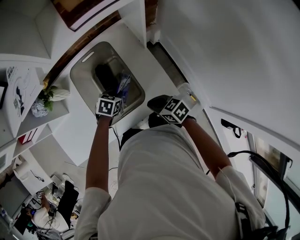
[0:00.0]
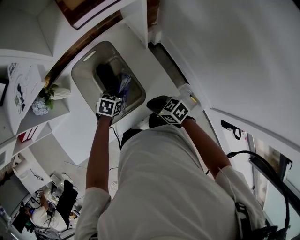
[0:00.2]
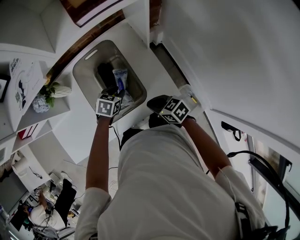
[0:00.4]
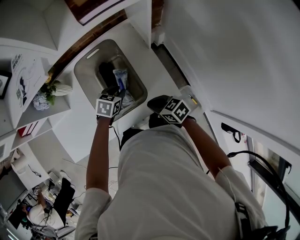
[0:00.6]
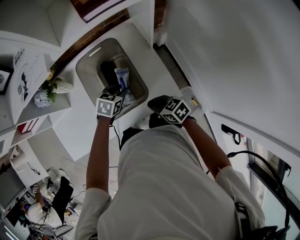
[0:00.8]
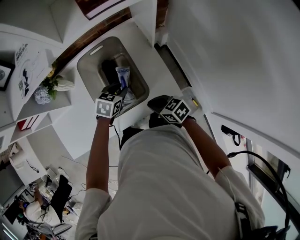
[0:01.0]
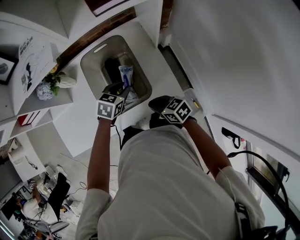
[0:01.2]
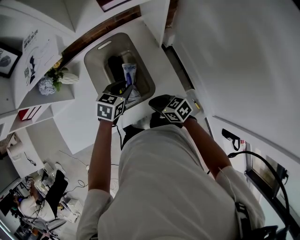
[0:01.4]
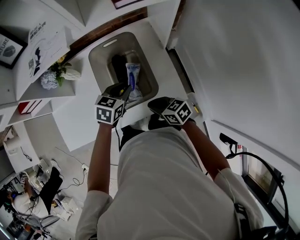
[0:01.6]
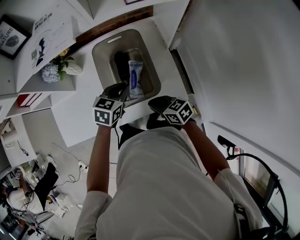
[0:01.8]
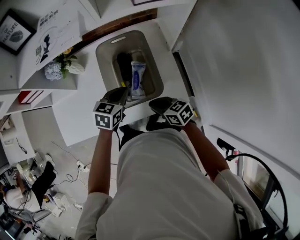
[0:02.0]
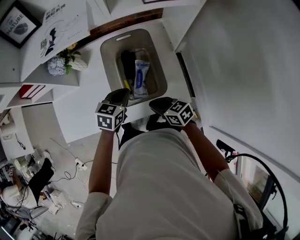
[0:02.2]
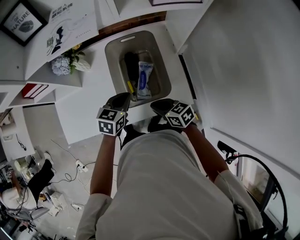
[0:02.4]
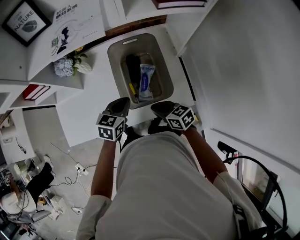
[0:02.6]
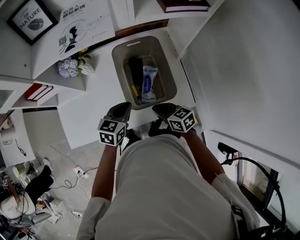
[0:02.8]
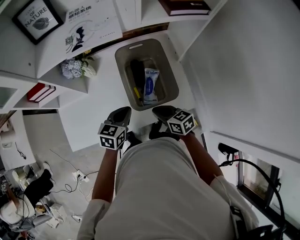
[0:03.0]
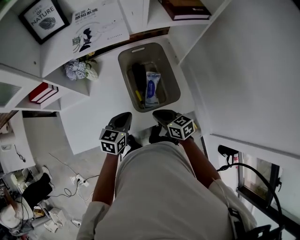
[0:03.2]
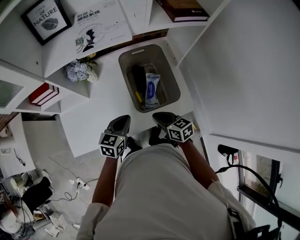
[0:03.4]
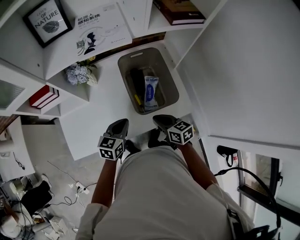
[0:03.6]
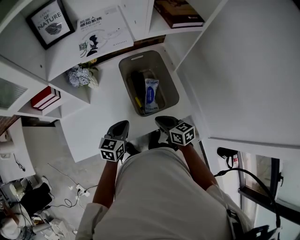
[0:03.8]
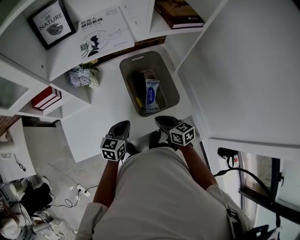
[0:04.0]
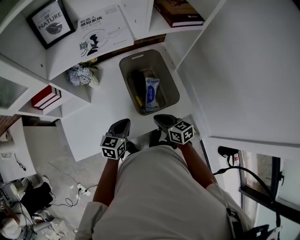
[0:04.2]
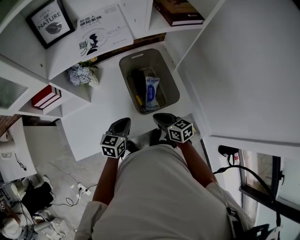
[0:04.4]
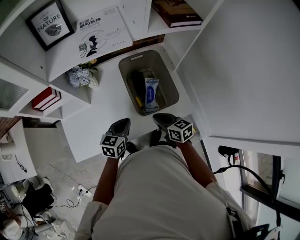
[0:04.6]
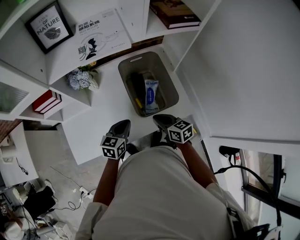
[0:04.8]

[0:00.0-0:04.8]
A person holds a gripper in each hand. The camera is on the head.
0:00.0 to 0:01.6: The left gripper goes about 15 cm upward, and rotates approximately 20 degrees. The right gripper travels to the left by about 5 cm.
0:01.6 to 0:03.2: The left gripper goes about 20 cm to the left and backward, while the right gripper heads to the left, covering some 10 cm.
0:03.2 to 0:04.8: There are only small adjustments of the grippers.

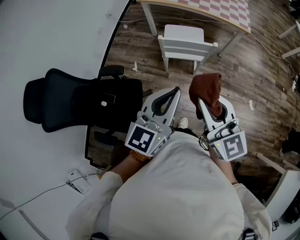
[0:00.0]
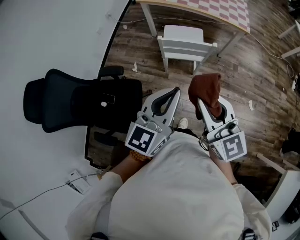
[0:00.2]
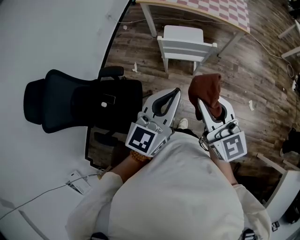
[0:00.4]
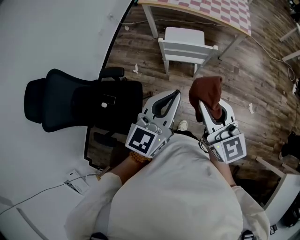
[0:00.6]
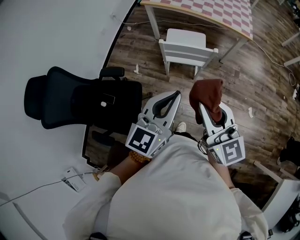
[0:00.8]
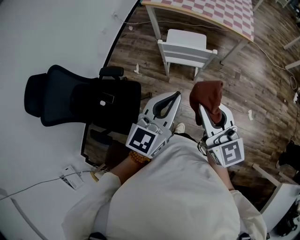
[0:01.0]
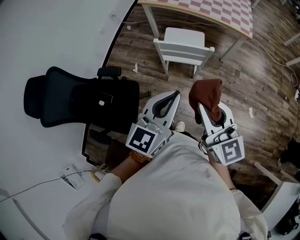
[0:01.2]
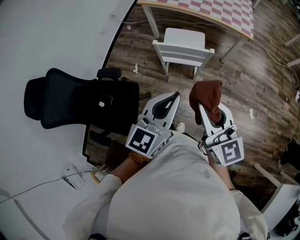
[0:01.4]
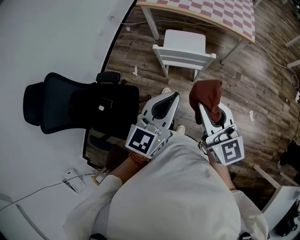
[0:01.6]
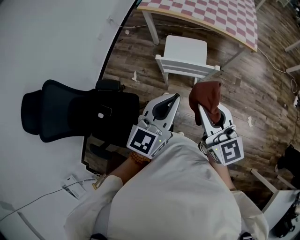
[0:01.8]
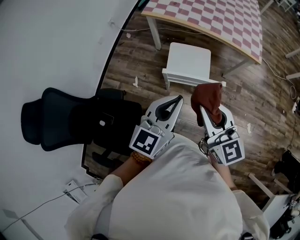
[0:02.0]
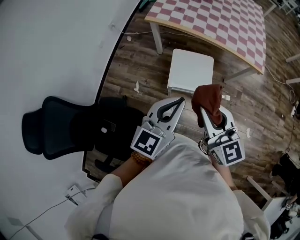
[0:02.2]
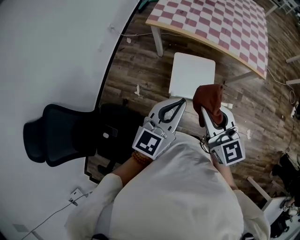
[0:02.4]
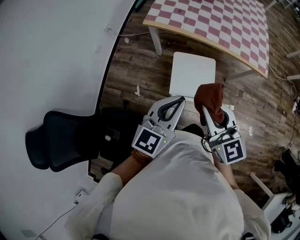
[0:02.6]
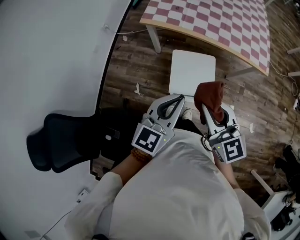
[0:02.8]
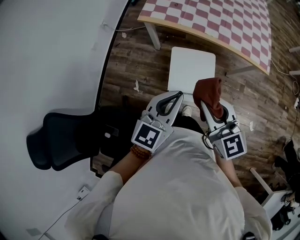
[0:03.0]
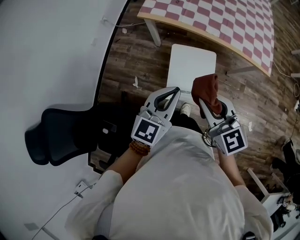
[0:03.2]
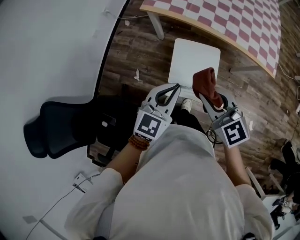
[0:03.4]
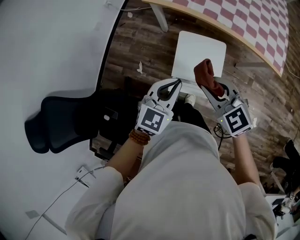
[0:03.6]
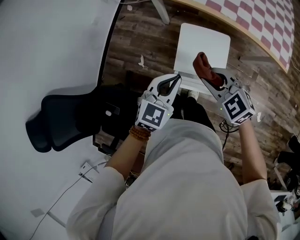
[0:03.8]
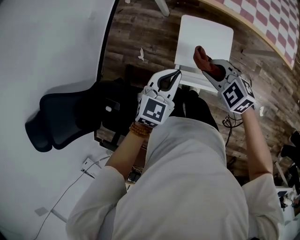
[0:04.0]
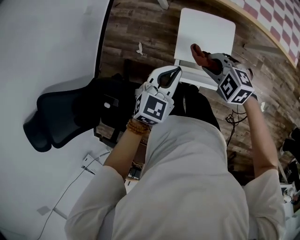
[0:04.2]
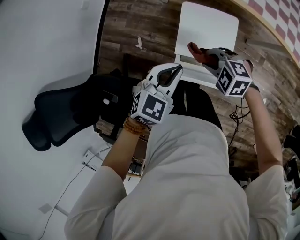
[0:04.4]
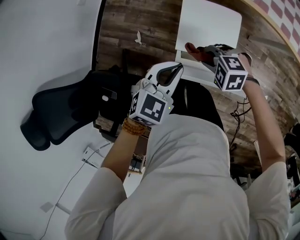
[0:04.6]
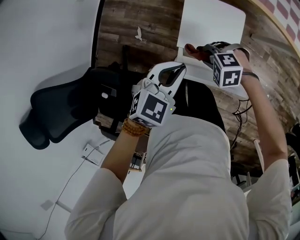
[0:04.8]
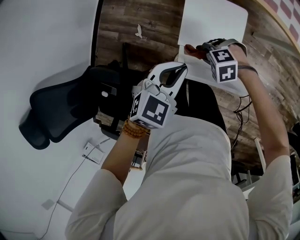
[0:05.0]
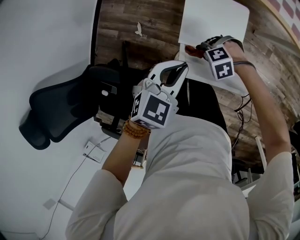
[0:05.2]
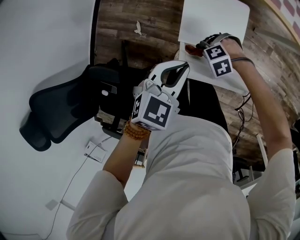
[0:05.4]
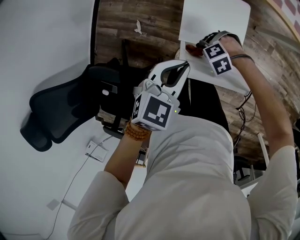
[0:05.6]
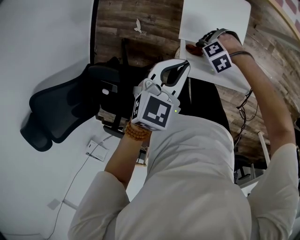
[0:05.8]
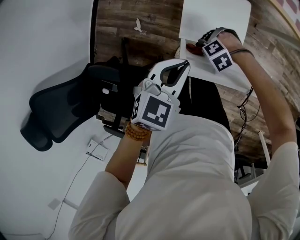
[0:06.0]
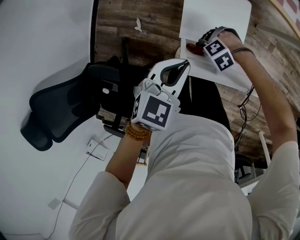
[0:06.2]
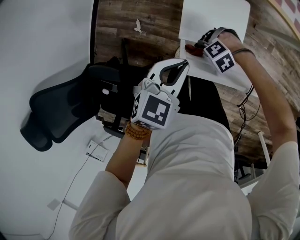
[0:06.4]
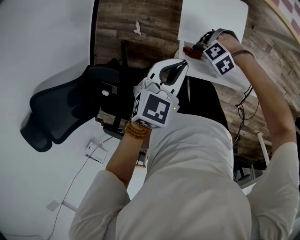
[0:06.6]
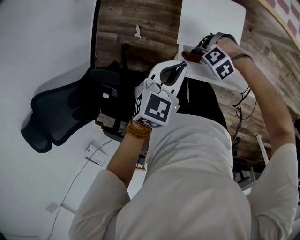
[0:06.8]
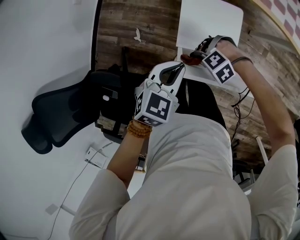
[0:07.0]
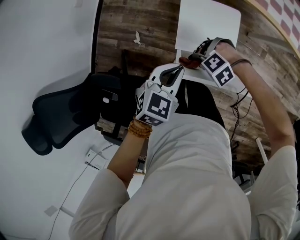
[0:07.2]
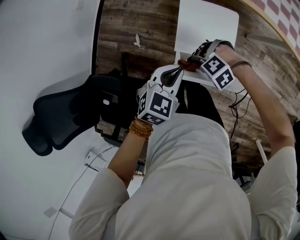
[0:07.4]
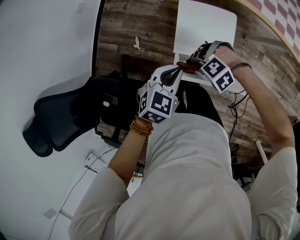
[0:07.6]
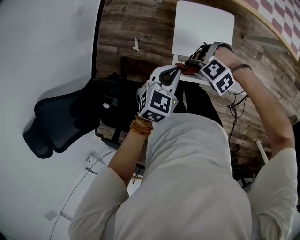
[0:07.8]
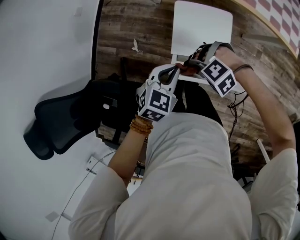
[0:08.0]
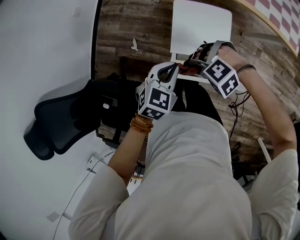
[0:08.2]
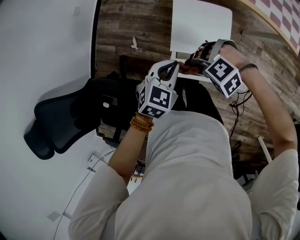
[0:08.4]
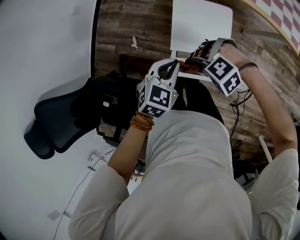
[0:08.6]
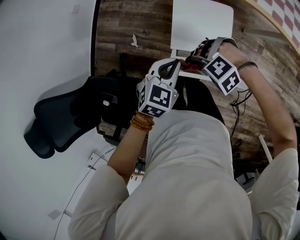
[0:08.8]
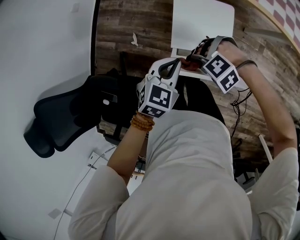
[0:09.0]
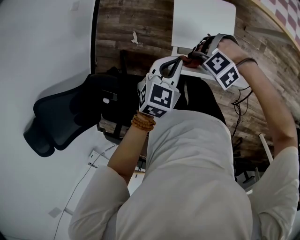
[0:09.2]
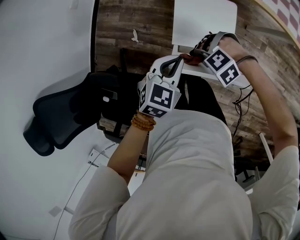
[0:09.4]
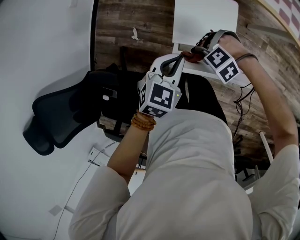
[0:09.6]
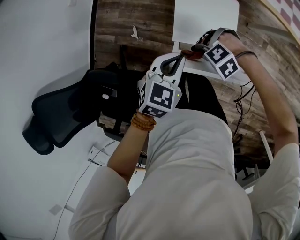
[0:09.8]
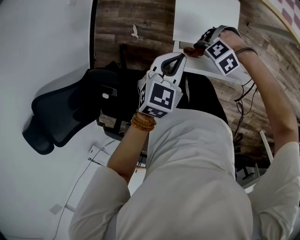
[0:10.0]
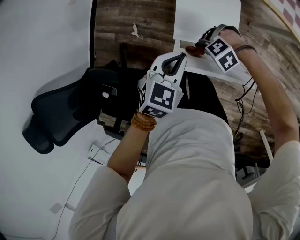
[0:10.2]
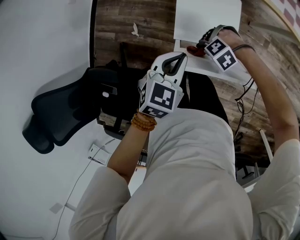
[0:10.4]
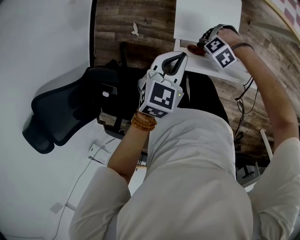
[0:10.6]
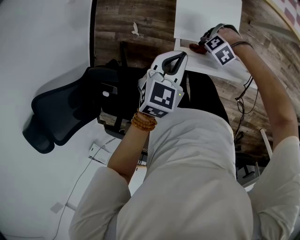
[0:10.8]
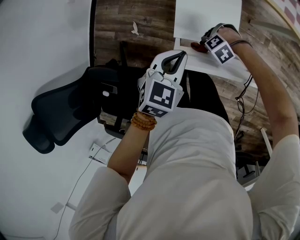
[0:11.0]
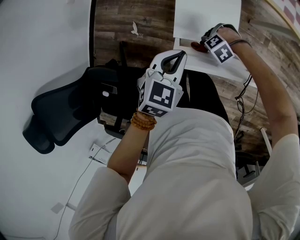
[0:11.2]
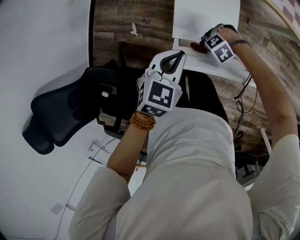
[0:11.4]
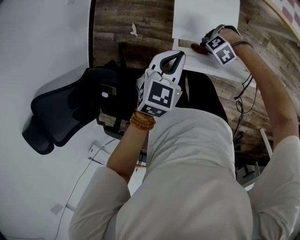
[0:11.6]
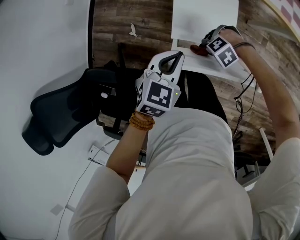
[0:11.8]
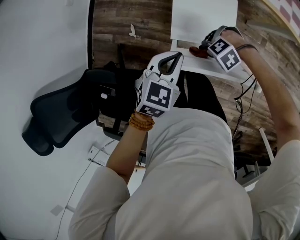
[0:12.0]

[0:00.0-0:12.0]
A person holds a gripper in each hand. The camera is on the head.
0:00.0 to 0:01.6: The right gripper is displaced to the right and forward by some 10 cm, while the left gripper moves forward and to the right, some 10 cm.
0:01.6 to 0:03.0: Both grippers travel together forward, roughly 35 cm.
0:03.0 to 0:04.4: The right gripper goes roughly 30 cm downward, and points its fingers roughly 40 degrees further downward; the left gripper moves downward, roughly 20 cm, and rotates approximately 30 degrees.
0:04.4 to 0:06.0: The right gripper moves downward, approximately 20 cm, and changes its angle by about 40 degrees.
0:06.0 to 0:07.6: The right gripper heads upward, covering approximately 10 cm.
0:07.6 to 0:09.0: The grippers move only a little.
0:09.0 to 0:10.4: The right gripper shifts some 10 cm downward.
0:10.4 to 0:12.0: The grippers make only small movements.

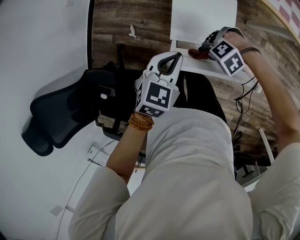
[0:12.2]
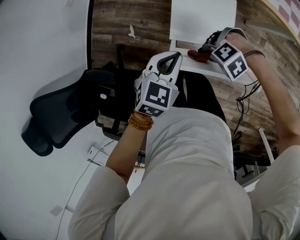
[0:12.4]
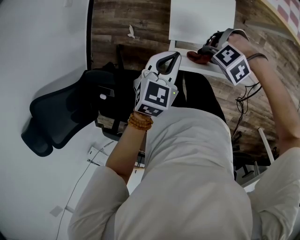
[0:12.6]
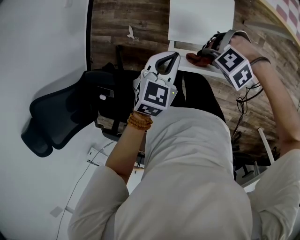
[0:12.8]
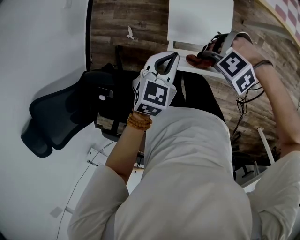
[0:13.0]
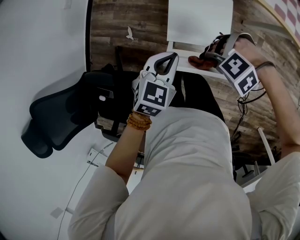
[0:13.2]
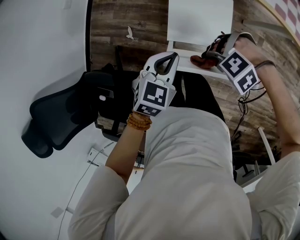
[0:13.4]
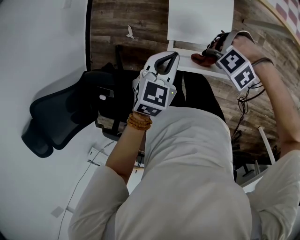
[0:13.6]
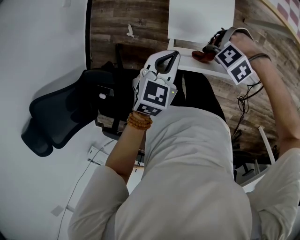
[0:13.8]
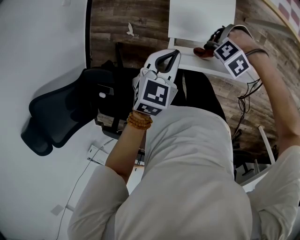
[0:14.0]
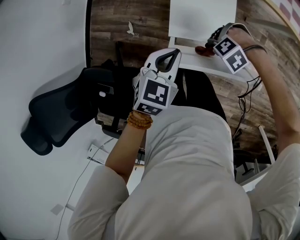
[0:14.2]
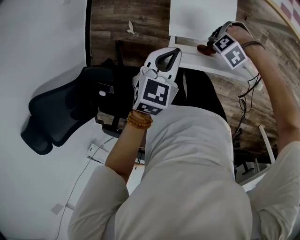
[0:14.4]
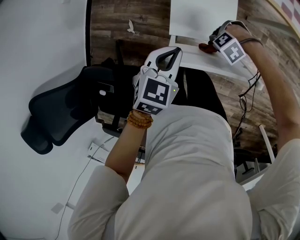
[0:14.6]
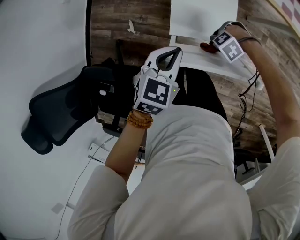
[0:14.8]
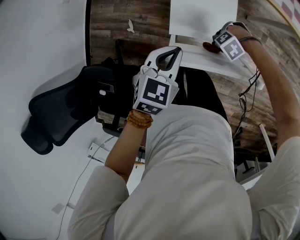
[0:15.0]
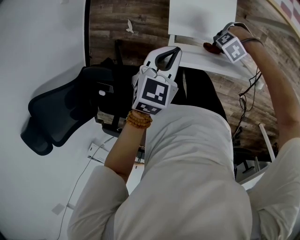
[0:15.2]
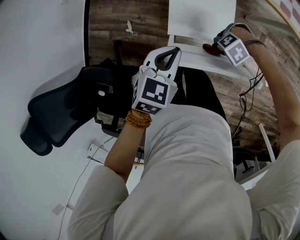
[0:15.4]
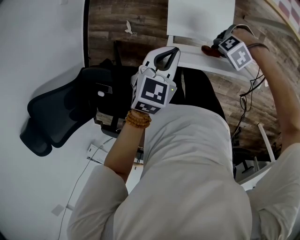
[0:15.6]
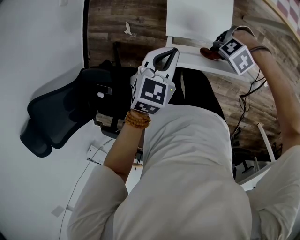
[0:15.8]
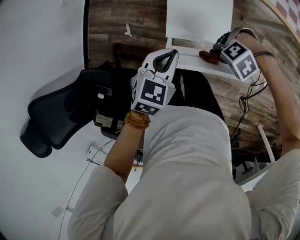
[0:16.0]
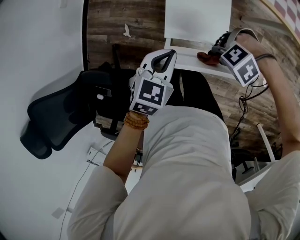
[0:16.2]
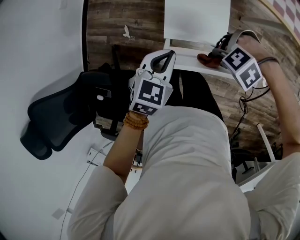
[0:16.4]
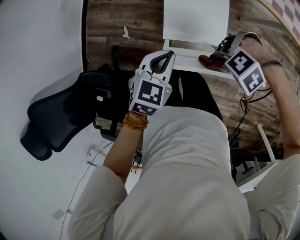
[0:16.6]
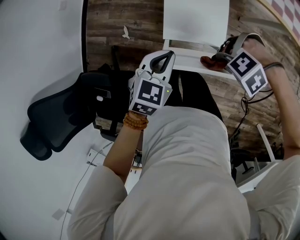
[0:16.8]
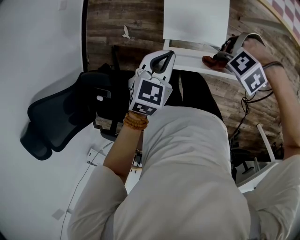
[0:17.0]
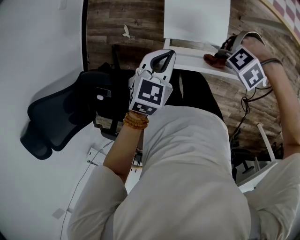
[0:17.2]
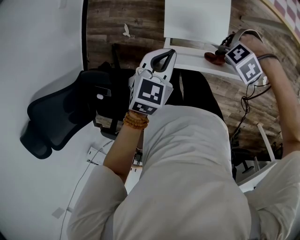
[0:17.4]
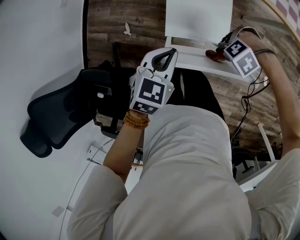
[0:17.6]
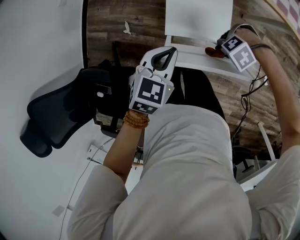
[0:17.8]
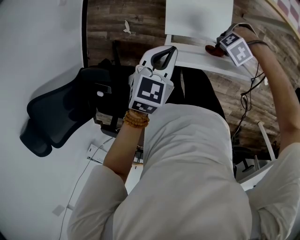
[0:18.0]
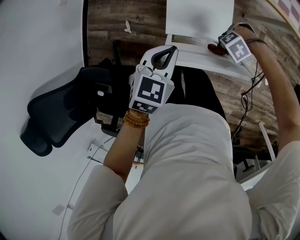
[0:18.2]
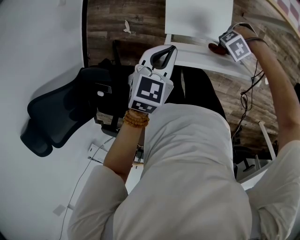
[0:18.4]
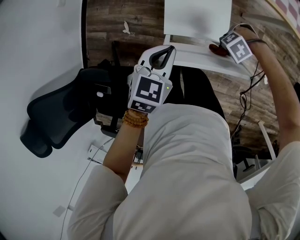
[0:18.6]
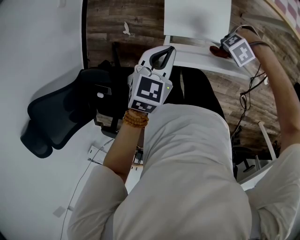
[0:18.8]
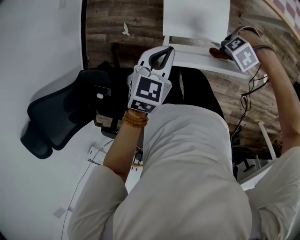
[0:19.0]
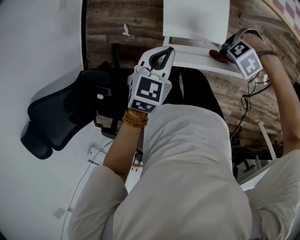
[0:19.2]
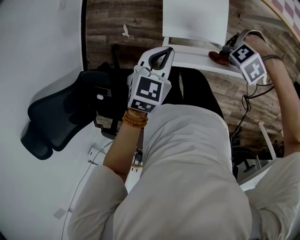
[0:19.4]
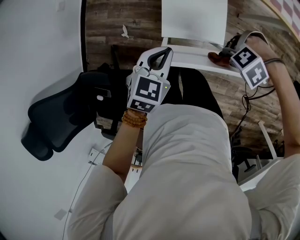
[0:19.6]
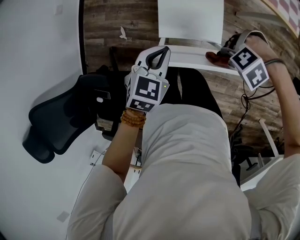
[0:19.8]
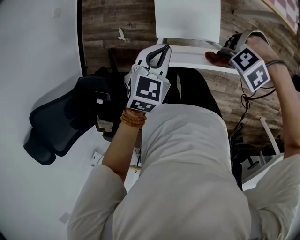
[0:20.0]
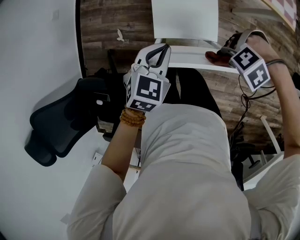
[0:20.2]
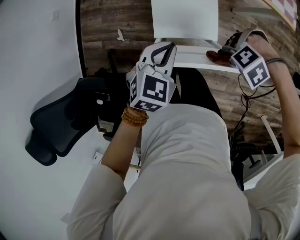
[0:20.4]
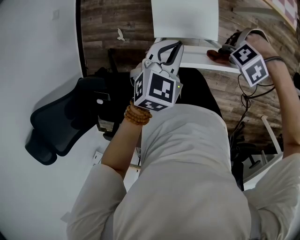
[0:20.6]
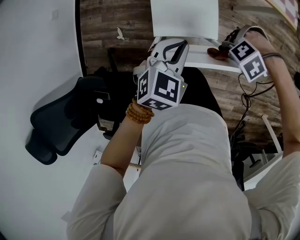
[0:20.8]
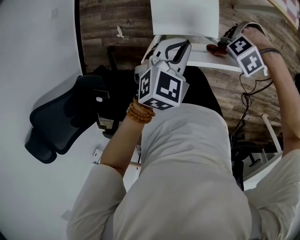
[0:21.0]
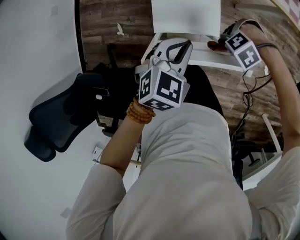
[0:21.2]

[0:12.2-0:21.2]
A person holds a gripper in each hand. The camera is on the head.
0:13.8 to 0:15.2: The right gripper heads downward and forward, covering roughly 10 cm.
0:15.2 to 0:16.6: The right gripper travels upward by some 15 cm.
0:16.6 to 0:18.2: The right gripper travels downward by roughly 15 cm.
0:18.2 to 0:19.8: The right gripper is displaced upward by approximately 15 cm.
0:19.8 to 0:21.2: The left gripper moves forward, some 10 cm. The right gripper heads downward, covering approximately 10 cm.
